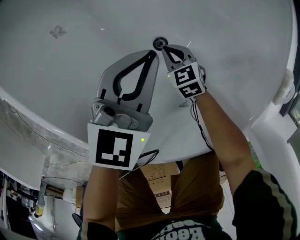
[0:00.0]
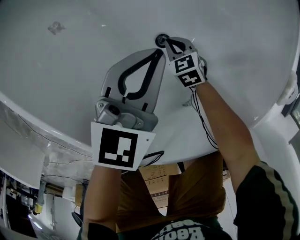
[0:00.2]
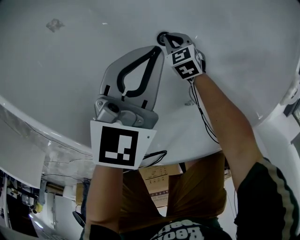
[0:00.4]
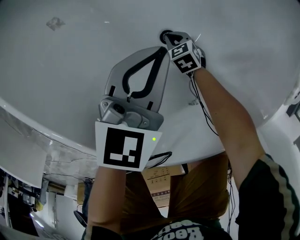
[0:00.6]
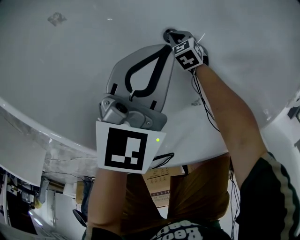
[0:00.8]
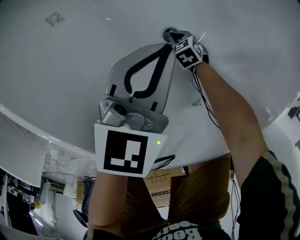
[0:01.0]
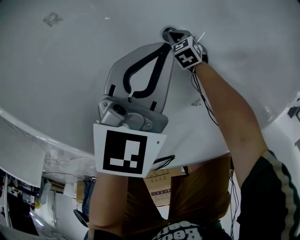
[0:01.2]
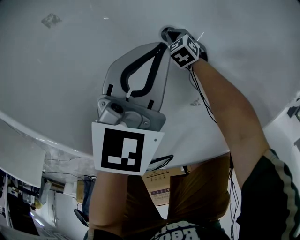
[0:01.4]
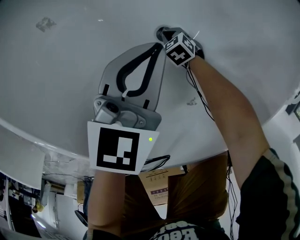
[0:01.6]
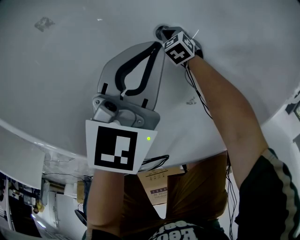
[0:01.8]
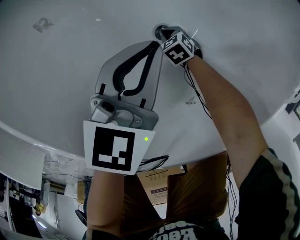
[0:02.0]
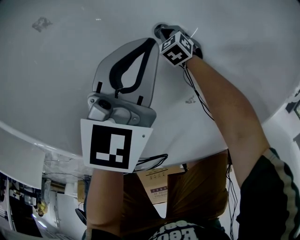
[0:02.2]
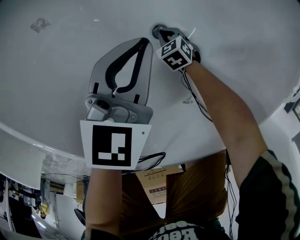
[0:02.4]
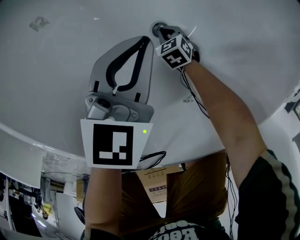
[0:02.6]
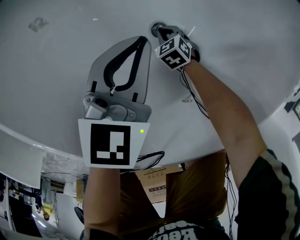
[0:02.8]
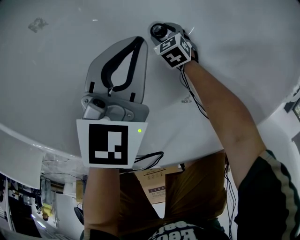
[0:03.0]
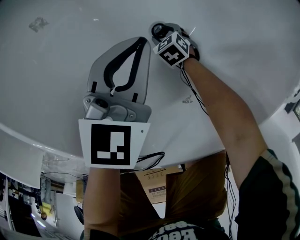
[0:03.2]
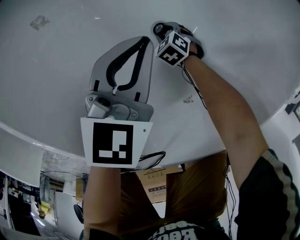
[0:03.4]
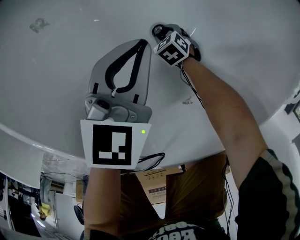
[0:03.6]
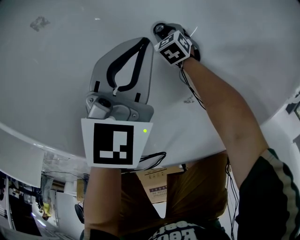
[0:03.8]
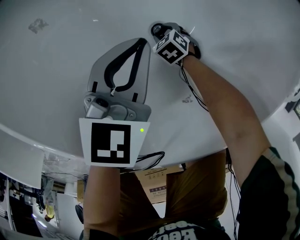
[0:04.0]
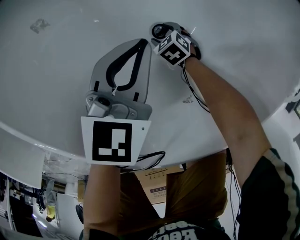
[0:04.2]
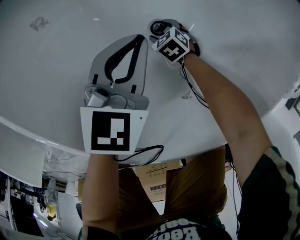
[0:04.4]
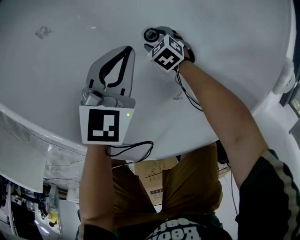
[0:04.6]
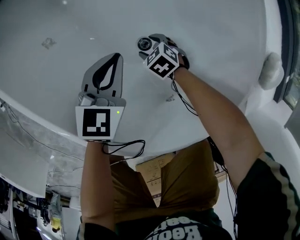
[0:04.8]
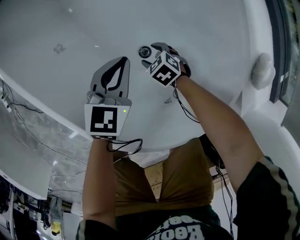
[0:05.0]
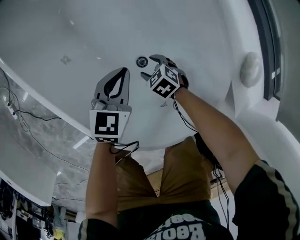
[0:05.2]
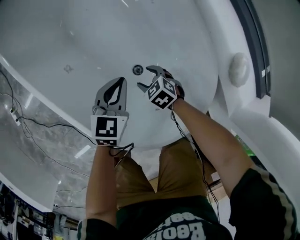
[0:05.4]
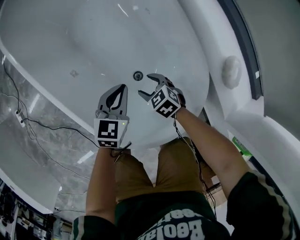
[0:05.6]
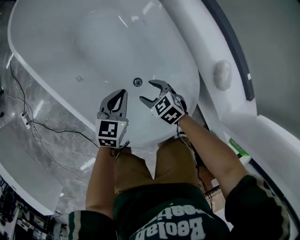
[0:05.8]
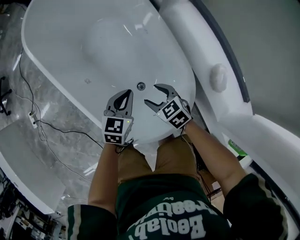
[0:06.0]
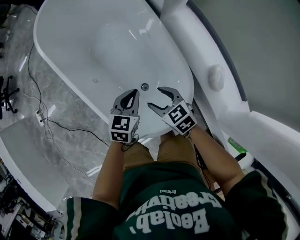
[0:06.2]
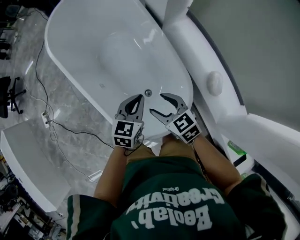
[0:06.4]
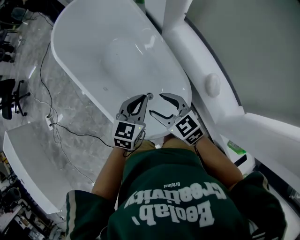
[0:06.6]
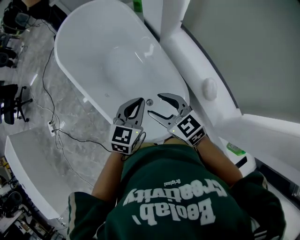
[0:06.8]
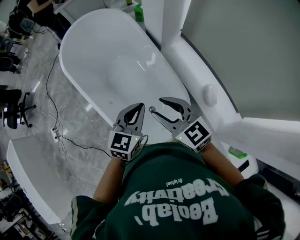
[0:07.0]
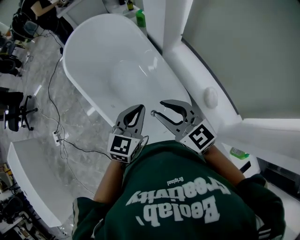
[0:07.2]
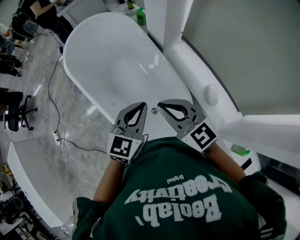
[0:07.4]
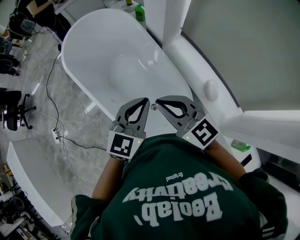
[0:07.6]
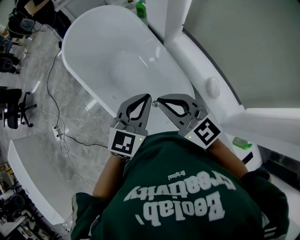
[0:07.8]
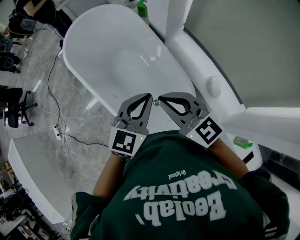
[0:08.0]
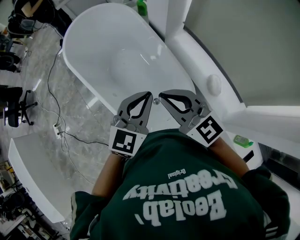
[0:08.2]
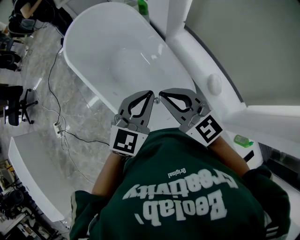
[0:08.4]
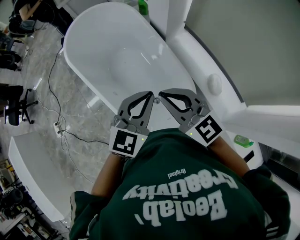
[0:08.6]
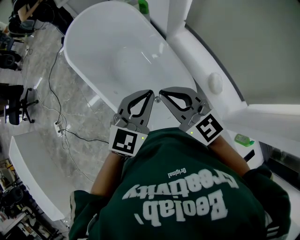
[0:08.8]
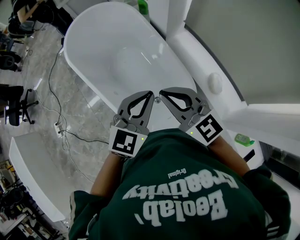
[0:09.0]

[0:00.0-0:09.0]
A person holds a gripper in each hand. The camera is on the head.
0:00.0 to 0:01.6: The left gripper goes some 5 cm downward; the right gripper travels downward by some 15 cm.
0:01.6 to 0:03.0: The right gripper opens up.
0:03.0 to 0:04.4: The grippers stay close to where they were, moving slightly.
0:04.4 to 0:06.0: The right gripper is displaced upward by about 50 cm, and turns by about 30 degrees. The left gripper moves upward, some 25 cm.
0:06.0 to 0:07.6: Both grippers travel together upward, some 40 cm. The right gripper angles its fingers upward, by approximately 40 degrees, and closes; the left gripper turns by approximately 30 degrees.
0:07.6 to 0:09.0: The grippers stay close to where they were, moving slightly.

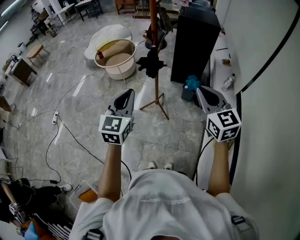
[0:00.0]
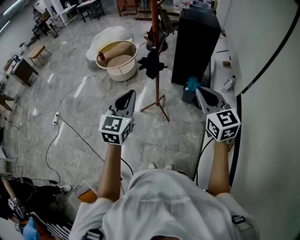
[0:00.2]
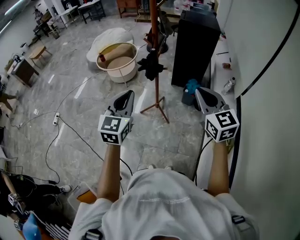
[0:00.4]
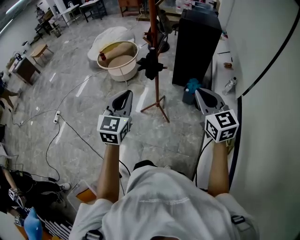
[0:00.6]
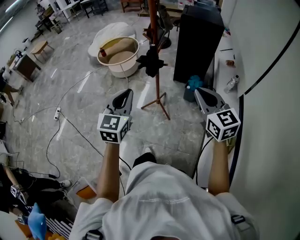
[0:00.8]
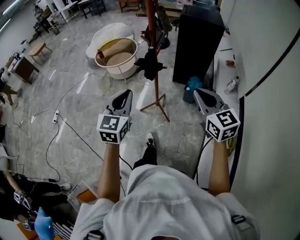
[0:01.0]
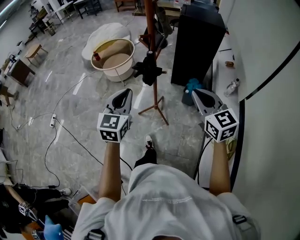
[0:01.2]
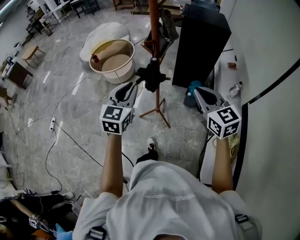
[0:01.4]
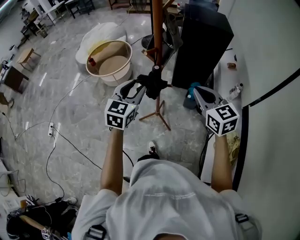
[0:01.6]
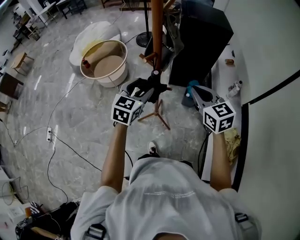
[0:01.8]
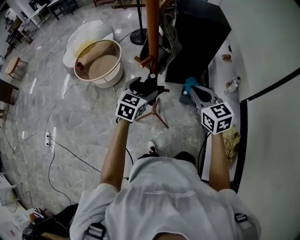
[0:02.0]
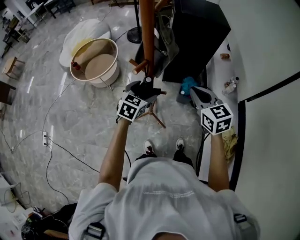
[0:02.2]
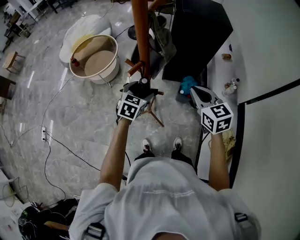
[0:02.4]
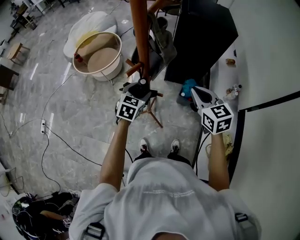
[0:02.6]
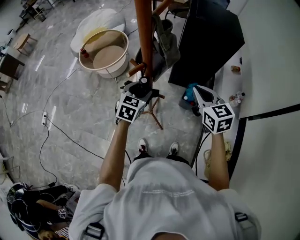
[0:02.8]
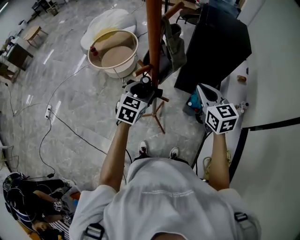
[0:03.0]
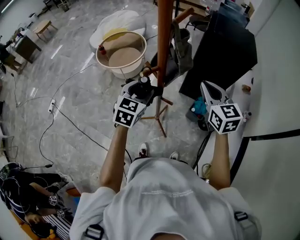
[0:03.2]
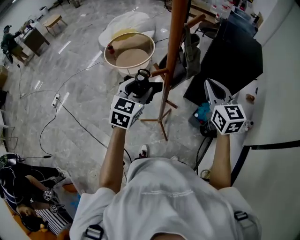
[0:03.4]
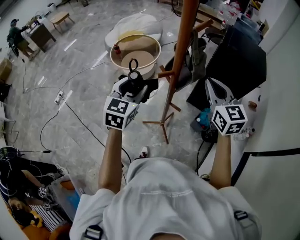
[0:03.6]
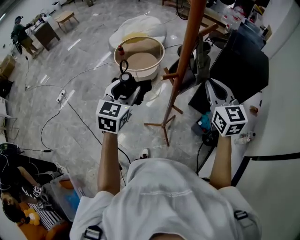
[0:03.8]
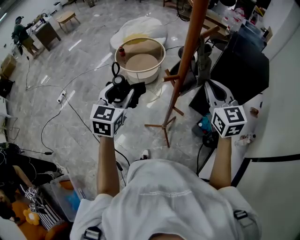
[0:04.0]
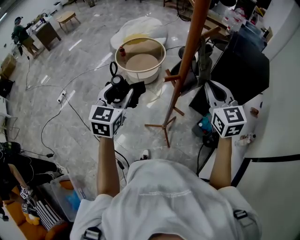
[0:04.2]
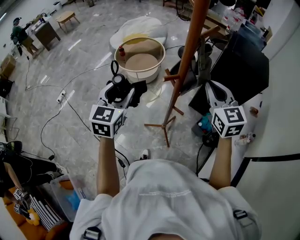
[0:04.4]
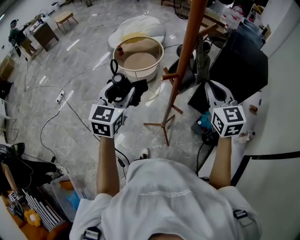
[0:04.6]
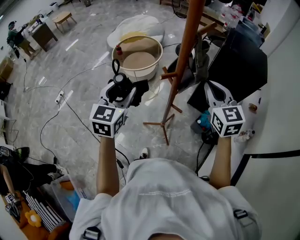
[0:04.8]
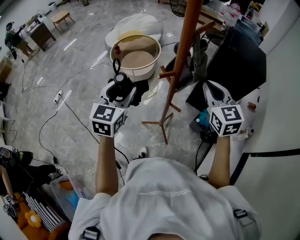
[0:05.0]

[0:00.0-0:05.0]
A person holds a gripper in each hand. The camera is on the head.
0:00.0 to 0:01.6: Both grippers travel together forward, about 25 cm. The left gripper opens.
0:01.6 to 0:03.4: The left gripper moves forward, some 10 cm, reaches some 15 cm downward, then returns, and opens, then closes once more, while the right gripper moves forward, roughly 20 cm.
0:03.4 to 0:05.0: The left gripper travels to the left by approximately 10 cm.

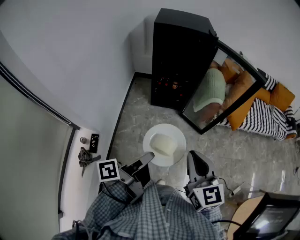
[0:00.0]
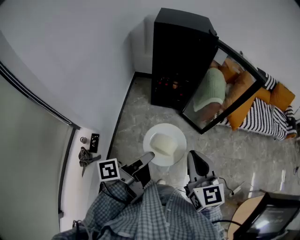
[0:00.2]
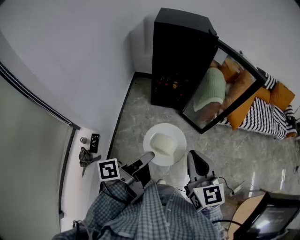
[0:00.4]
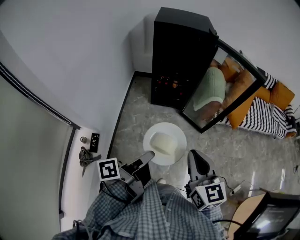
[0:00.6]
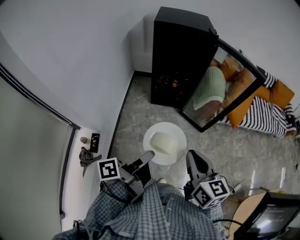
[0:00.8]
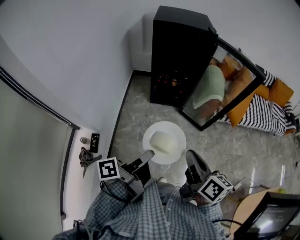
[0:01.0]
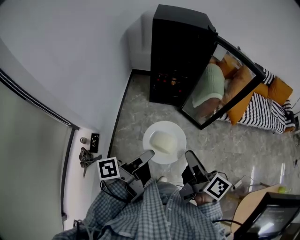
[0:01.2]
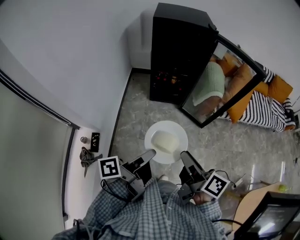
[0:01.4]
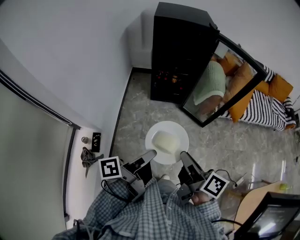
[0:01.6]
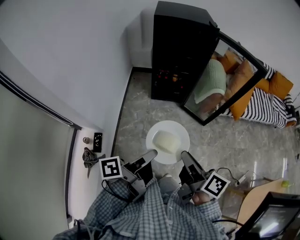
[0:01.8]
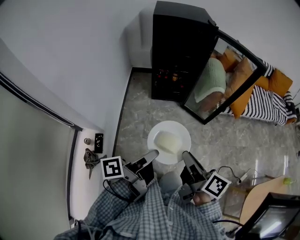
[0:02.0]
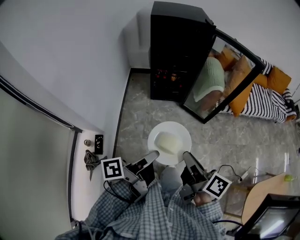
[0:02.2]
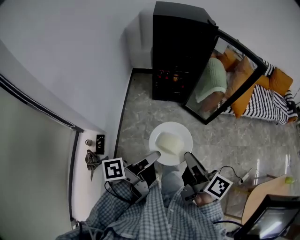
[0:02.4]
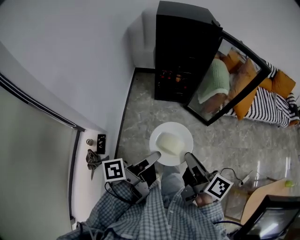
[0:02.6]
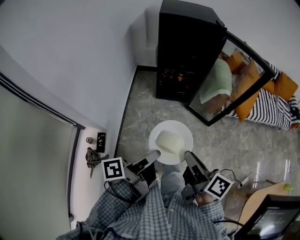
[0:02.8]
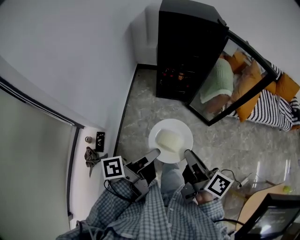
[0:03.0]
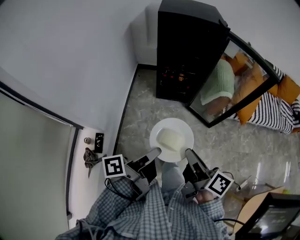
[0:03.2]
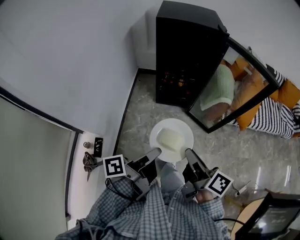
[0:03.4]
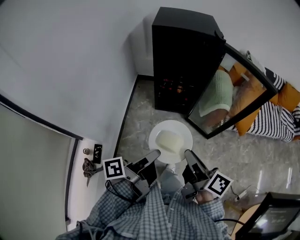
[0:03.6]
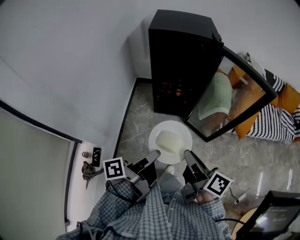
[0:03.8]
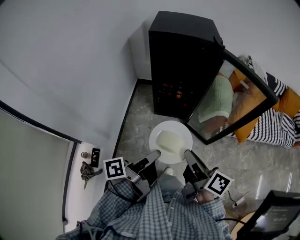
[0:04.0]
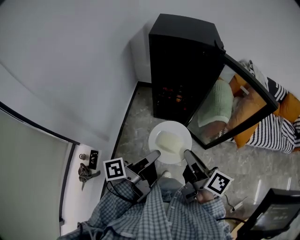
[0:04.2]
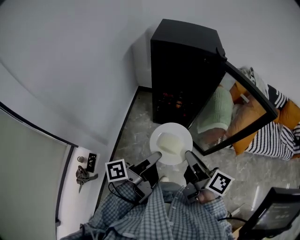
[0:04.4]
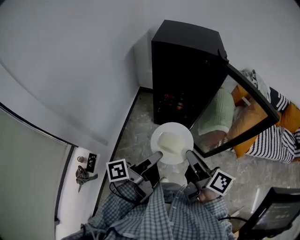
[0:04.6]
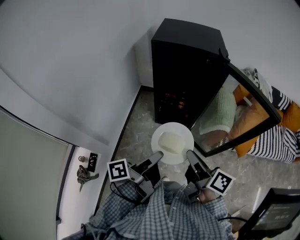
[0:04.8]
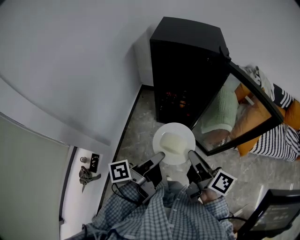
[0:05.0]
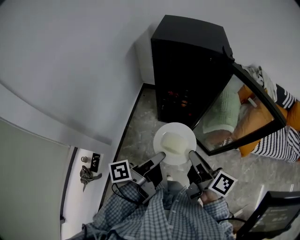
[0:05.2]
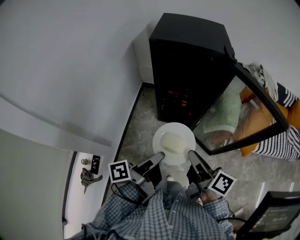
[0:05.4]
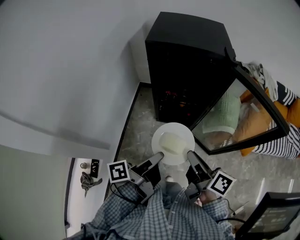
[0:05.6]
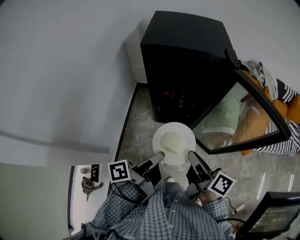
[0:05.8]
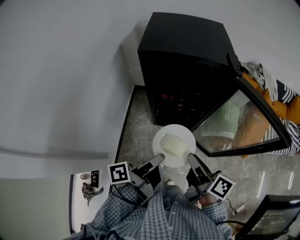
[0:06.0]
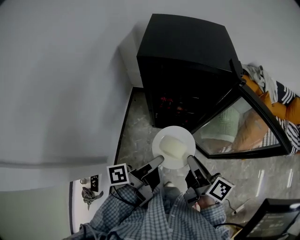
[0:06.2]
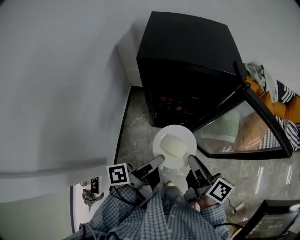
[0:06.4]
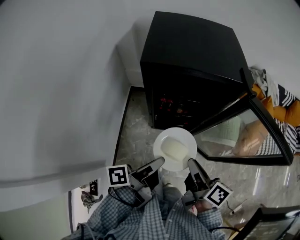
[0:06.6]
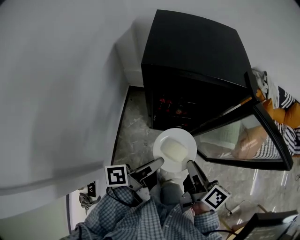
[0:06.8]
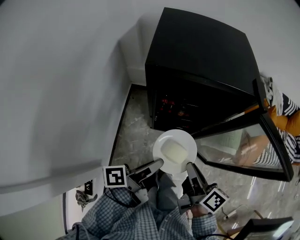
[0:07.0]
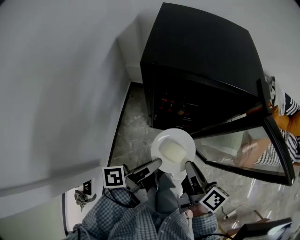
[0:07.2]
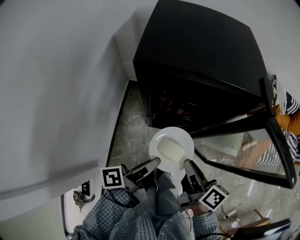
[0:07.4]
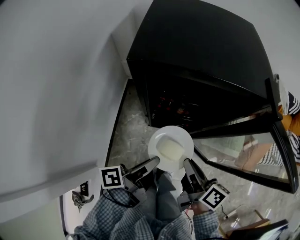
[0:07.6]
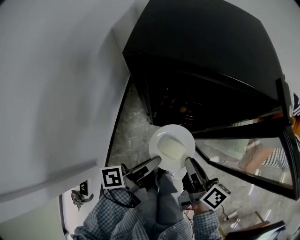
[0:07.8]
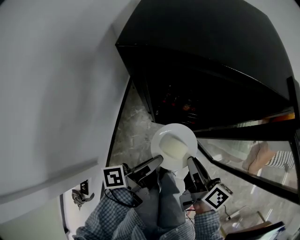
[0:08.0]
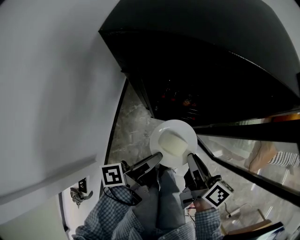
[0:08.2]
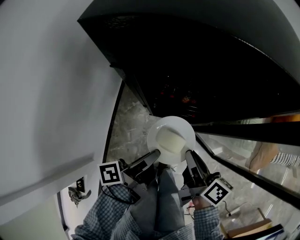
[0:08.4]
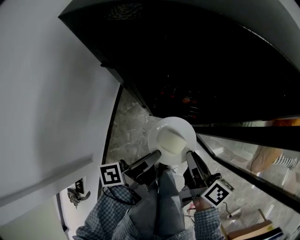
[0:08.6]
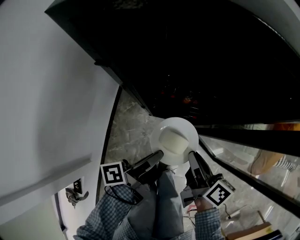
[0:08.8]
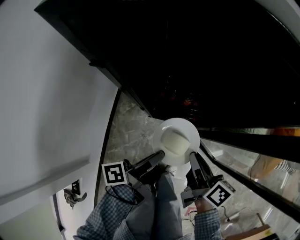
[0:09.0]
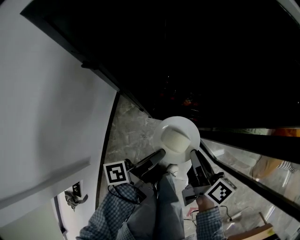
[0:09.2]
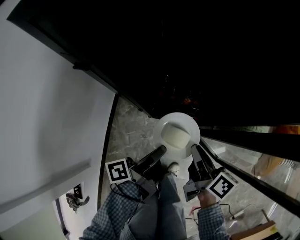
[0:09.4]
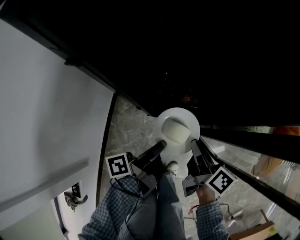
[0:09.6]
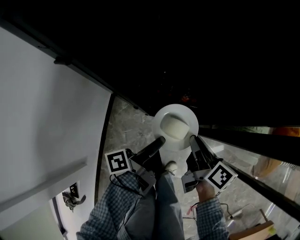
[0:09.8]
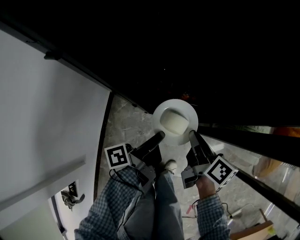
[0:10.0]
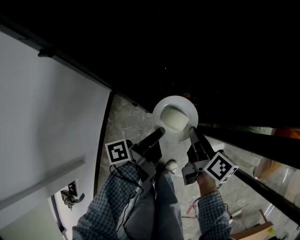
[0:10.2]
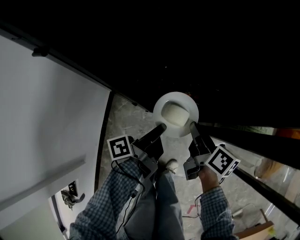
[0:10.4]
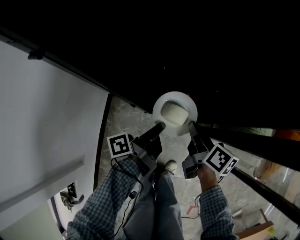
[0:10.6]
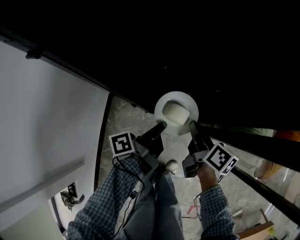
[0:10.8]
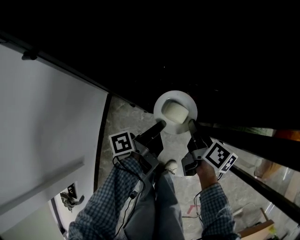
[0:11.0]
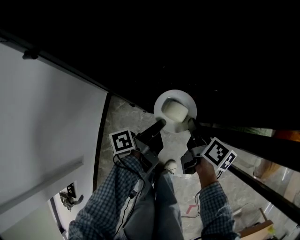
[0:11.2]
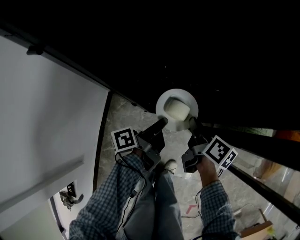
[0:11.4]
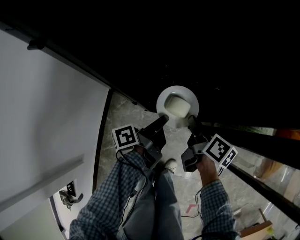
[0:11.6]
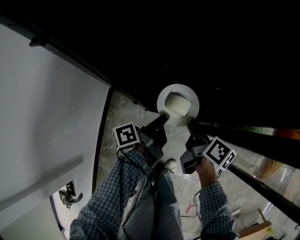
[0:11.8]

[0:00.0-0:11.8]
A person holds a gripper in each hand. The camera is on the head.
0:00.0 to 0:01.4: The right gripper ends up approximately 5 cm from where it was, twists roughly 60 degrees clockwise, seen from behind, and opens up.
0:03.0 to 0:04.4: The right gripper changes place by about 20 cm.
0:04.4 to 0:06.0: The right gripper shifts by some 15 cm.
0:06.0 to 0:07.4: The right gripper ends up approximately 10 cm from where it was.
0:07.4 to 0:08.8: The right gripper heads downward, covering some 15 cm.
0:08.8 to 0:10.4: The right gripper goes roughly 10 cm downward.
